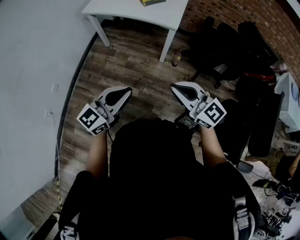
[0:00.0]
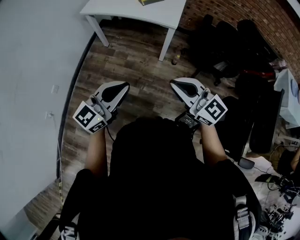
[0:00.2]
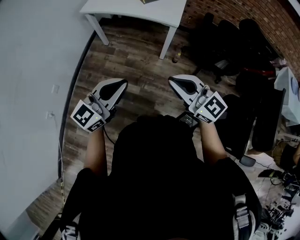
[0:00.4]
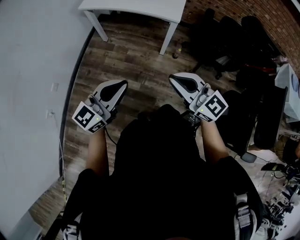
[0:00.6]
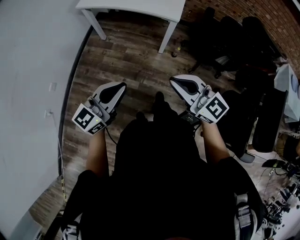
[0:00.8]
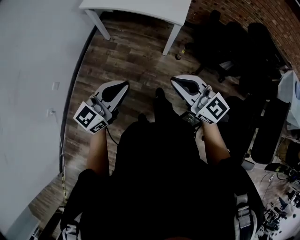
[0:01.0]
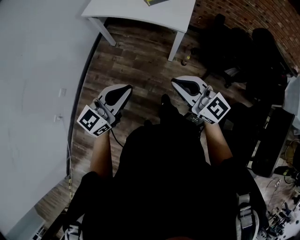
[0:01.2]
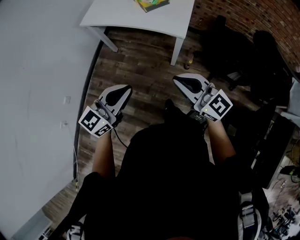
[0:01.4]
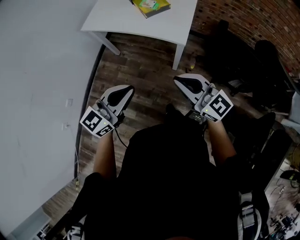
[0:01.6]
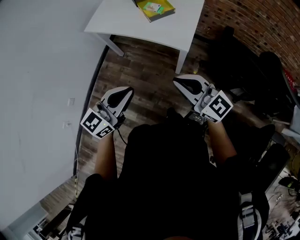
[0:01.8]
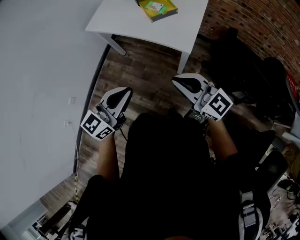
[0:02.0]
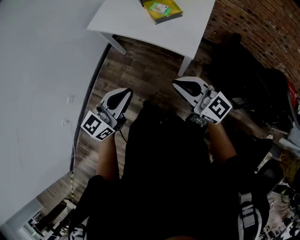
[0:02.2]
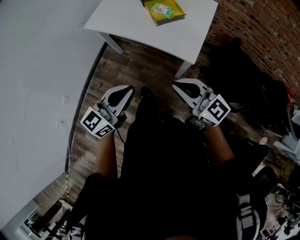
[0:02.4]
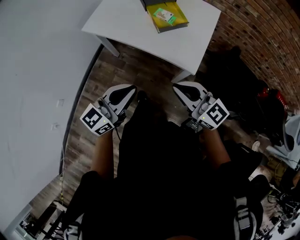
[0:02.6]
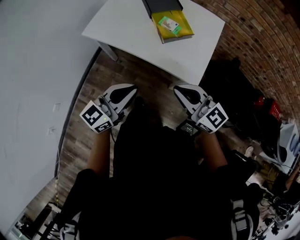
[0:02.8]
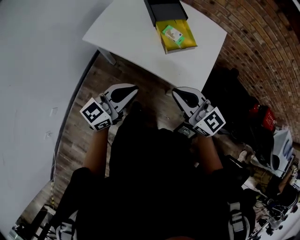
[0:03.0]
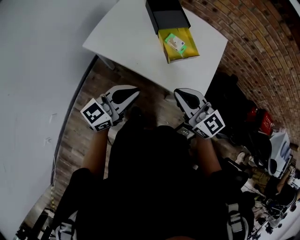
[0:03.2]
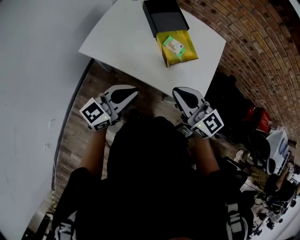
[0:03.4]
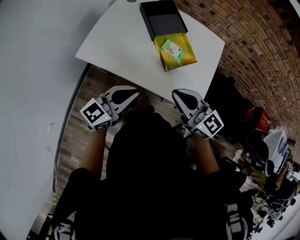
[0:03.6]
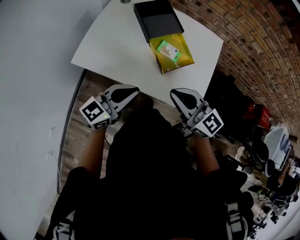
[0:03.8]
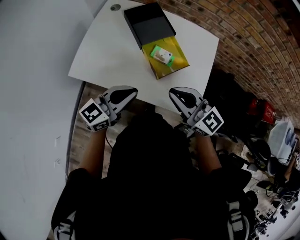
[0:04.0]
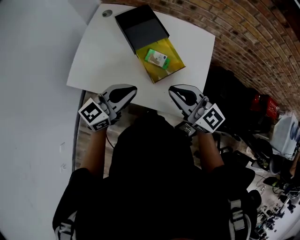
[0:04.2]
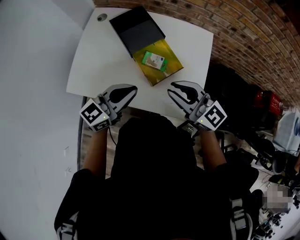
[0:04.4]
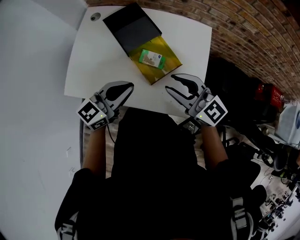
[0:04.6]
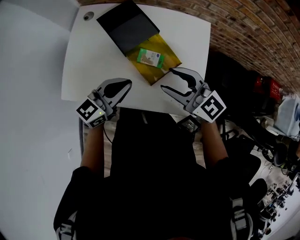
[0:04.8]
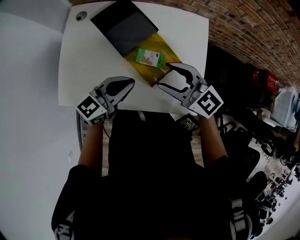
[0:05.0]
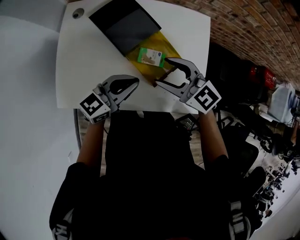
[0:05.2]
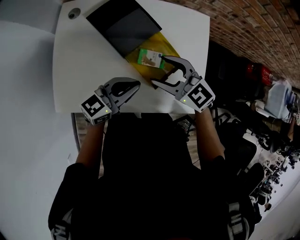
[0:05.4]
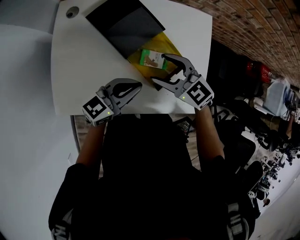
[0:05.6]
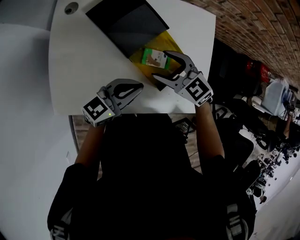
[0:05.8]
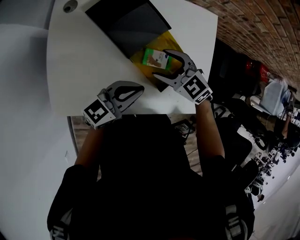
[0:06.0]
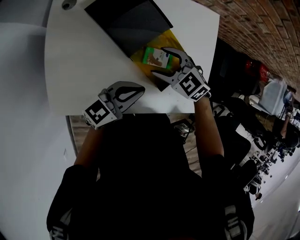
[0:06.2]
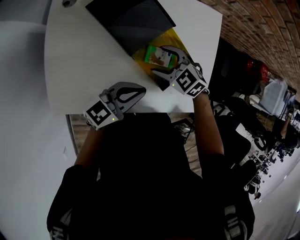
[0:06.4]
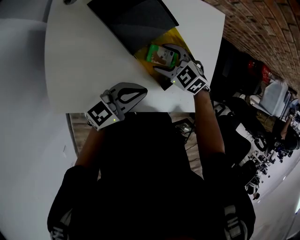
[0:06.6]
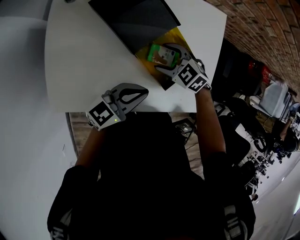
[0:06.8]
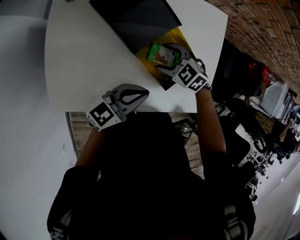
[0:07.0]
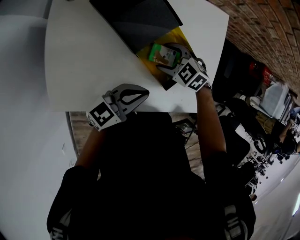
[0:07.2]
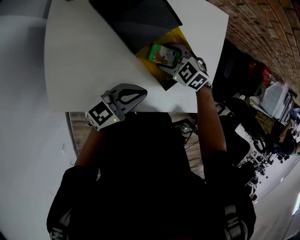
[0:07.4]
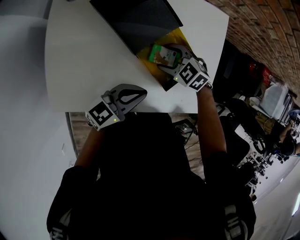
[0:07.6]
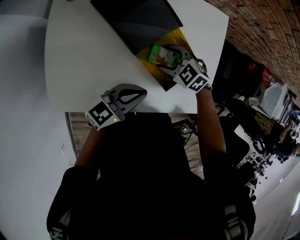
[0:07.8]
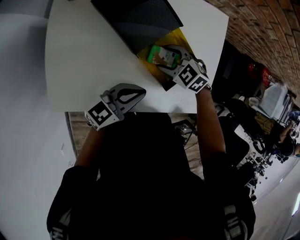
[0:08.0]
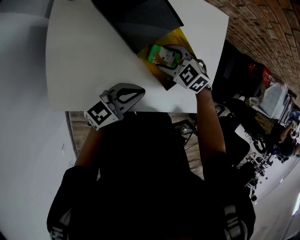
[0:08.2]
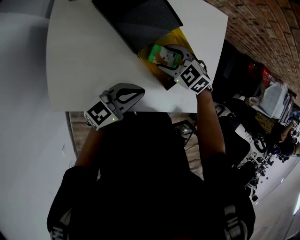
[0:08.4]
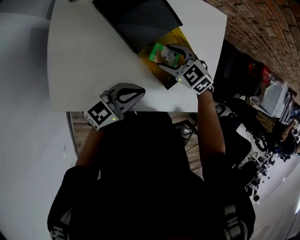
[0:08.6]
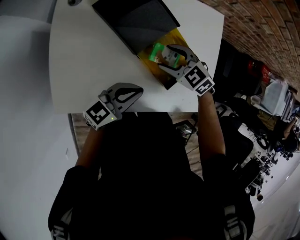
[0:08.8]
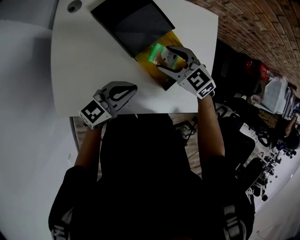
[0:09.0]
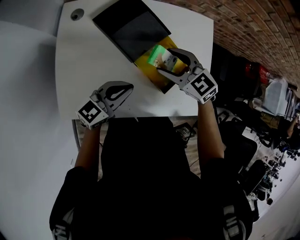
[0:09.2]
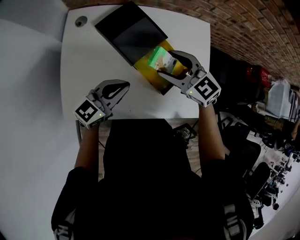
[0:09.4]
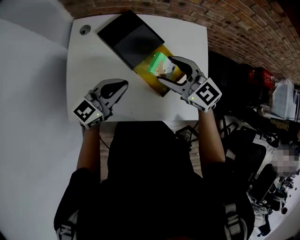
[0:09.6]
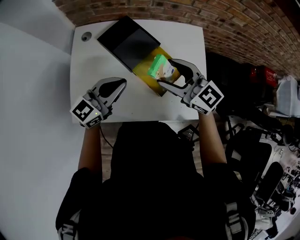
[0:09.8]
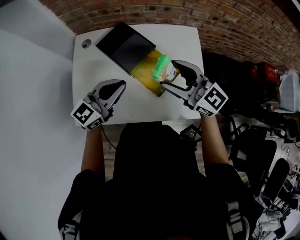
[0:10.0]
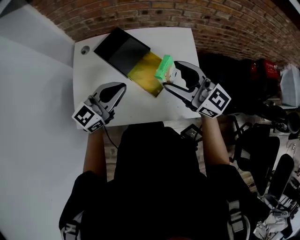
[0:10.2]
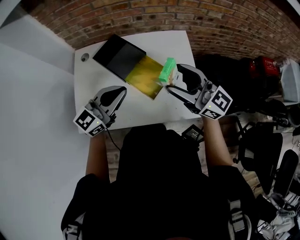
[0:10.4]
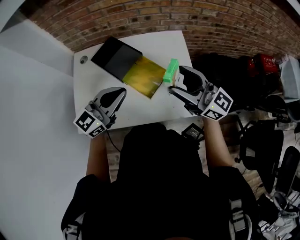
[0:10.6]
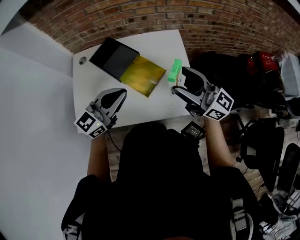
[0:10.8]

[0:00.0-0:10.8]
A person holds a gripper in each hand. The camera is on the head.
0:00.0 to 0:01.6: The grippers both shift forward by some 20 cm.
0:01.6 to 0:03.0: Both grippers travel together forward, approximately 30 cm.
0:03.0 to 0:04.6: The grippers both shift forward by roughly 25 cm. The right gripper opens.
0:04.6 to 0:06.2: The right gripper shifts about 20 cm downward, points its fingers some 40 degrees further downward, and opens up. The left gripper travels downward by approximately 10 cm, and rotates some 20 degrees.
0:06.2 to 0:07.8: The right gripper travels downward by approximately 5 cm.
0:07.8 to 0:09.2: The right gripper moves upward, approximately 15 cm, and changes its angle by roughly 30 degrees. Meanwhile the left gripper moves roughly 5 cm.
0:09.2 to 0:10.8: The right gripper moves upward, to the right and backward, about 35 cm, and tips its fingers upward by approximately 50 degrees. The left gripper travels upward and to the right by about 20 cm, and rotates about 20 degrees.

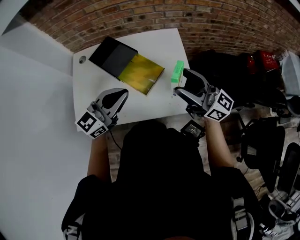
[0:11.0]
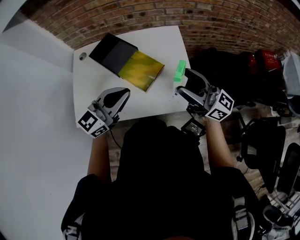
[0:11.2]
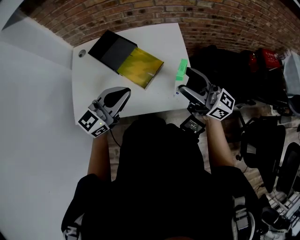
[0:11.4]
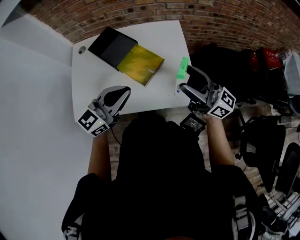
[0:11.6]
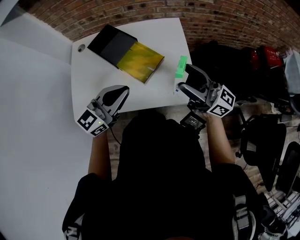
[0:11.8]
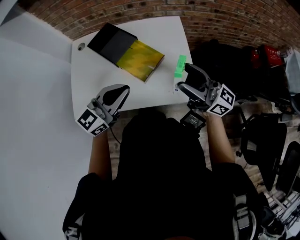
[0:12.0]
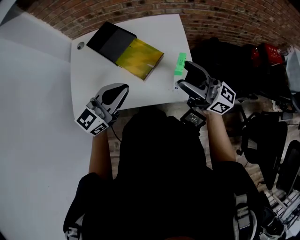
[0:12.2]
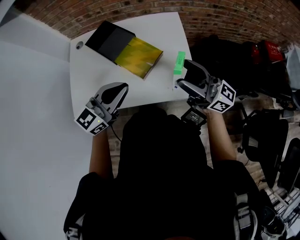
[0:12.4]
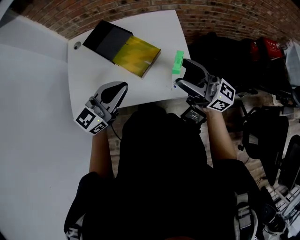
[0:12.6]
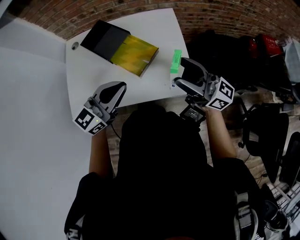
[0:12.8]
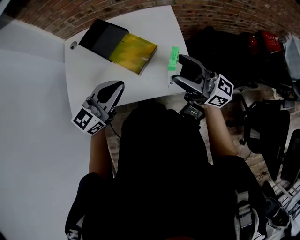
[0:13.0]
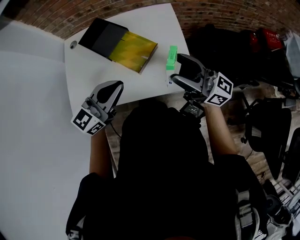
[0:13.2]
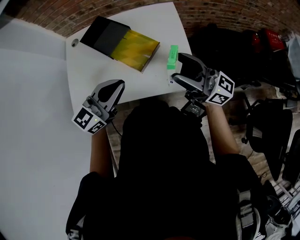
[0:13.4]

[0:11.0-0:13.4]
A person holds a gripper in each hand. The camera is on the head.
0:11.0 to 0:12.2: The grippers stay close to where they were, moving slightly.
0:12.2 to 0:13.4: Both grippers stay about where they are.

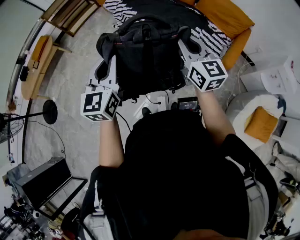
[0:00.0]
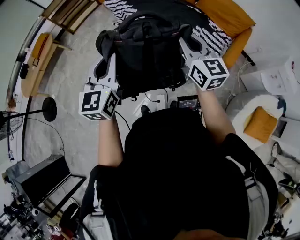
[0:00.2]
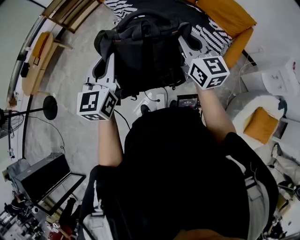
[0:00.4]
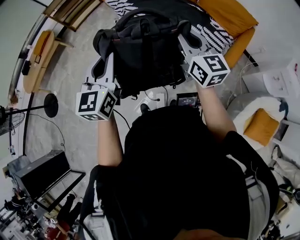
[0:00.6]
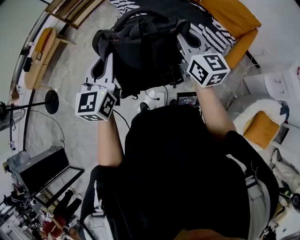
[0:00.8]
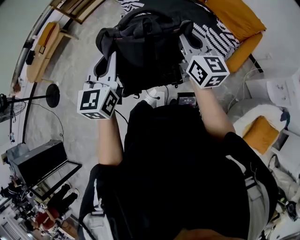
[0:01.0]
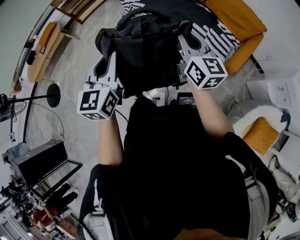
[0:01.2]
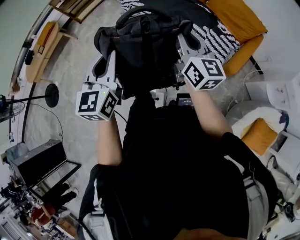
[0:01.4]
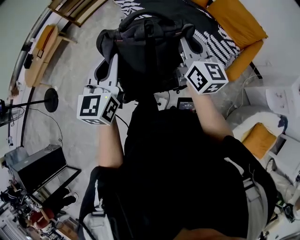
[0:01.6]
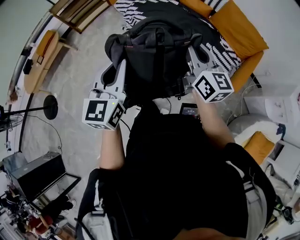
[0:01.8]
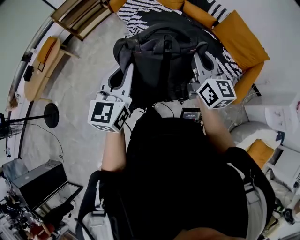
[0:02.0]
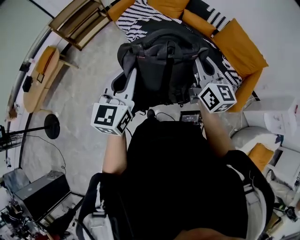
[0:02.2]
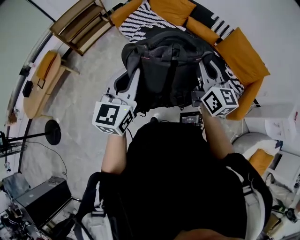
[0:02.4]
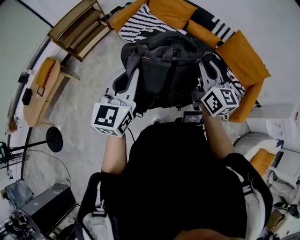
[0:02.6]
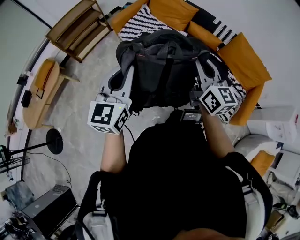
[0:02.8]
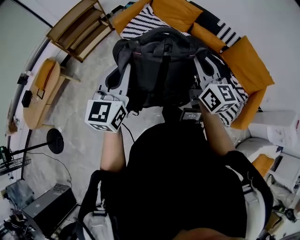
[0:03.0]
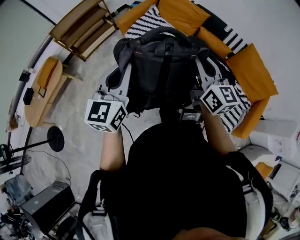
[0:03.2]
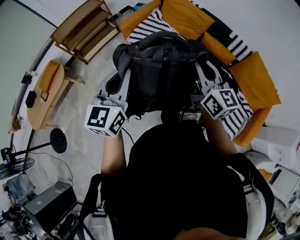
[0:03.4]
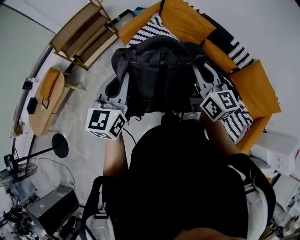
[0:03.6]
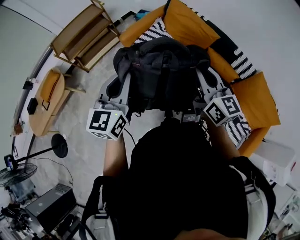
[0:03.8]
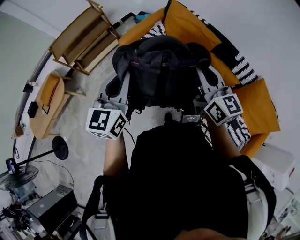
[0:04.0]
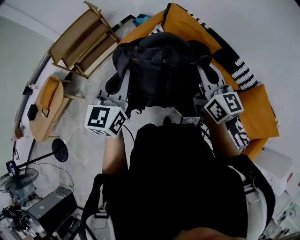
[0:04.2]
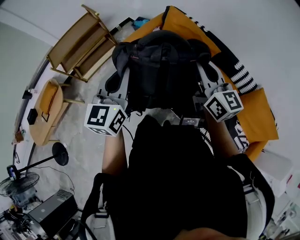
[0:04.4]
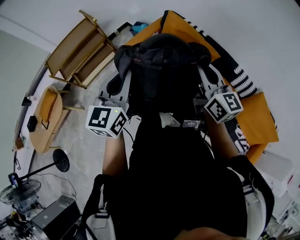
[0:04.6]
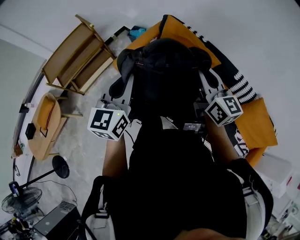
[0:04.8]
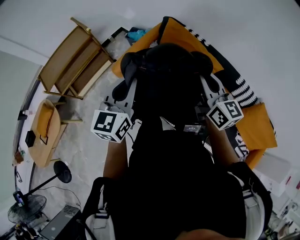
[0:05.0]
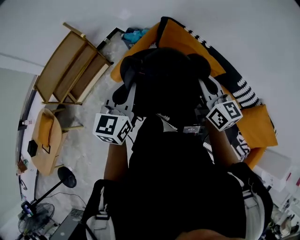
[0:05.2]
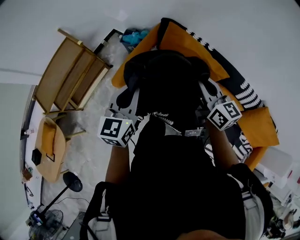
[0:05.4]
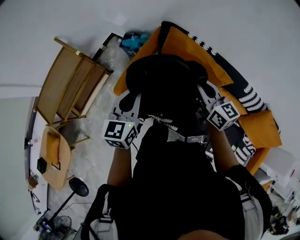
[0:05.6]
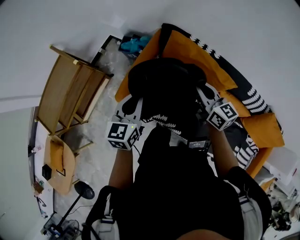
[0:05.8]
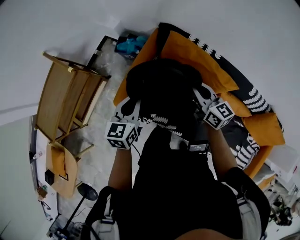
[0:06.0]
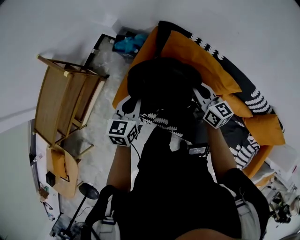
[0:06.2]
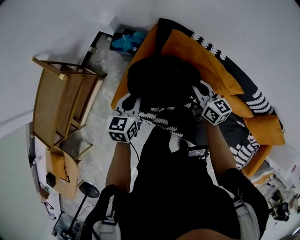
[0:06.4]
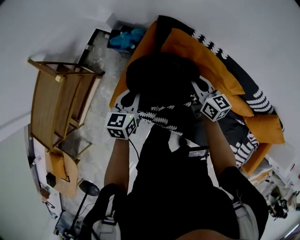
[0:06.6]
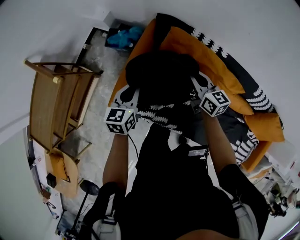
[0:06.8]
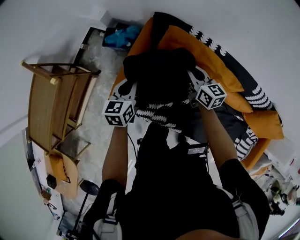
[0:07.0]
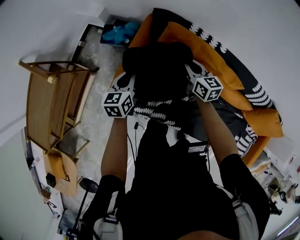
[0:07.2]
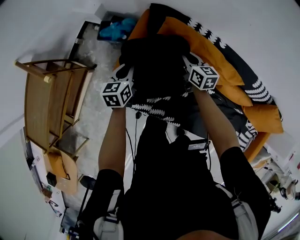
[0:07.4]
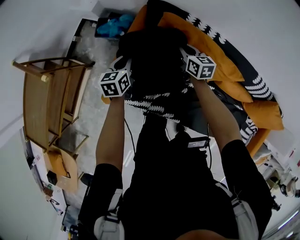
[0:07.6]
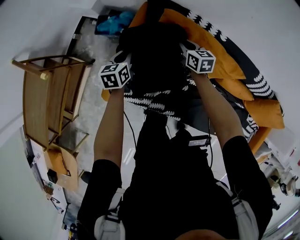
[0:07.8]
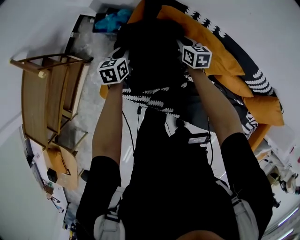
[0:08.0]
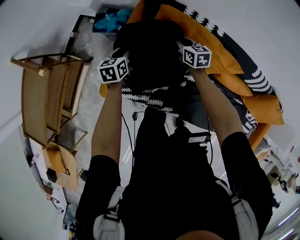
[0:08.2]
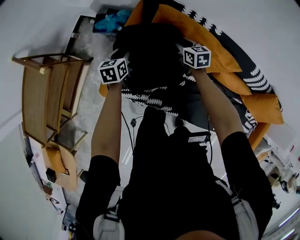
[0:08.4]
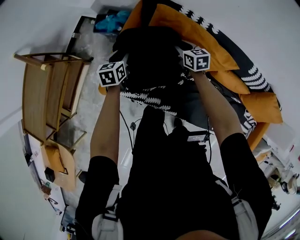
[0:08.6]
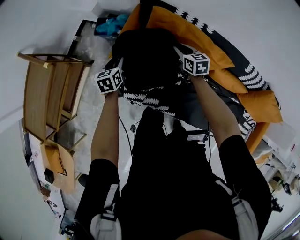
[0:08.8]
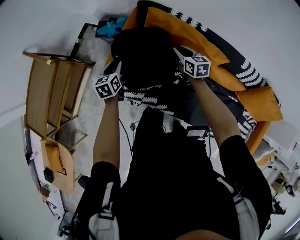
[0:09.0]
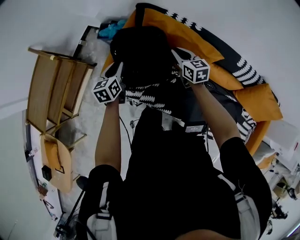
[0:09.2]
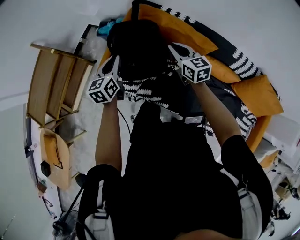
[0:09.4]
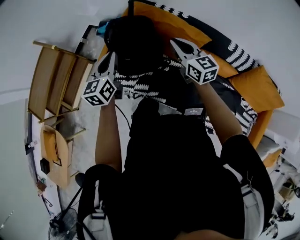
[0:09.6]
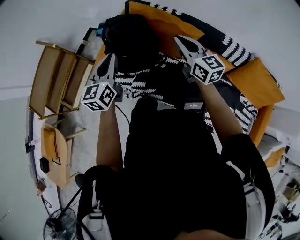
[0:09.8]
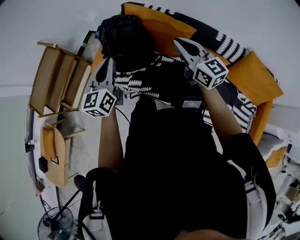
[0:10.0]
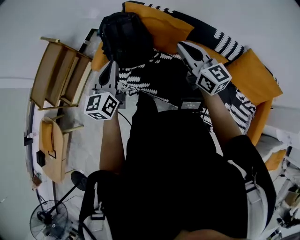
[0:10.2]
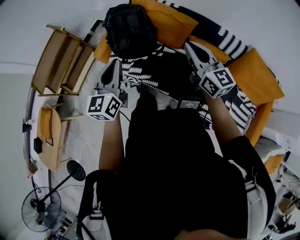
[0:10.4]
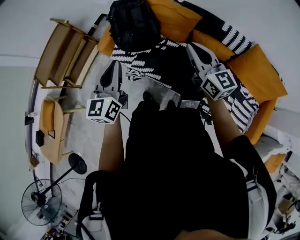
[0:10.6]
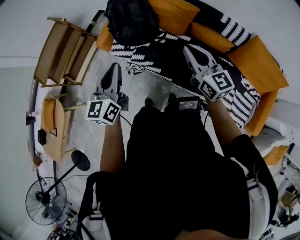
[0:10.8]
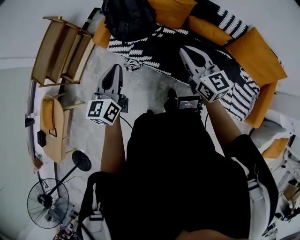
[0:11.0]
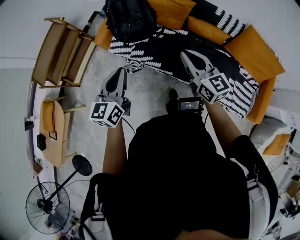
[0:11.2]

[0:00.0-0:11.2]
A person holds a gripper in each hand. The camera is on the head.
0:00.0 to 0:01.6: The right gripper is displaced forward by some 5 cm; the left gripper heads to the right, covering some 5 cm.
0:01.6 to 0:03.2: Both grippers travel together forward and to the left, about 40 cm.
0:03.2 to 0:04.8: Both grippers travel together forward, some 40 cm.
0:04.8 to 0:06.4: Both grippers move forward and downward, approximately 40 cm. The right gripper turns by approximately 20 degrees. The left gripper swivels some 30 degrees.
0:06.4 to 0:08.0: The two grippers go roughly 20 cm downward and forward. The right gripper rotates about 20 degrees.
0:08.0 to 0:09.6: The two grippers go approximately 35 cm upward and backward. The left gripper swivels about 30 degrees, and opens and closes again. Meanwhile the right gripper turns by roughly 30 degrees.
0:09.6 to 0:11.2: Both grippers travel together backward, approximately 35 cm.
